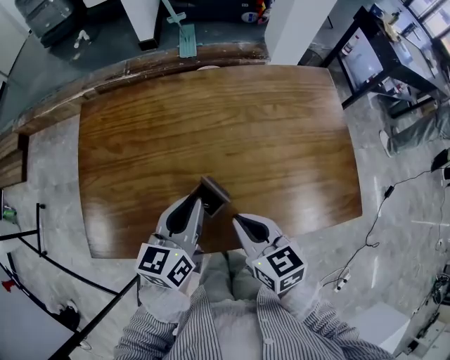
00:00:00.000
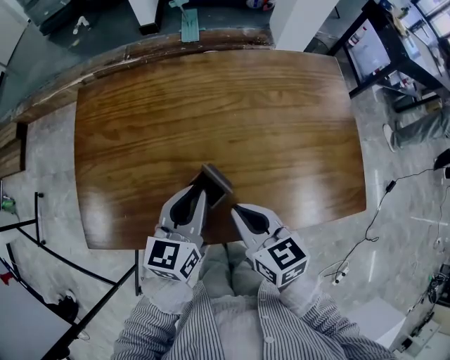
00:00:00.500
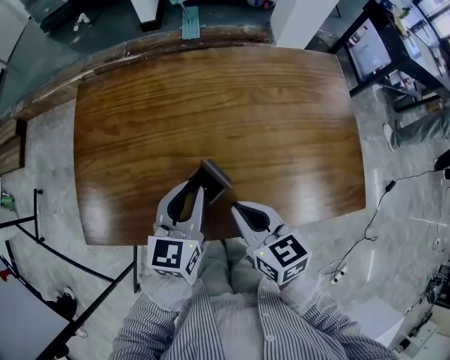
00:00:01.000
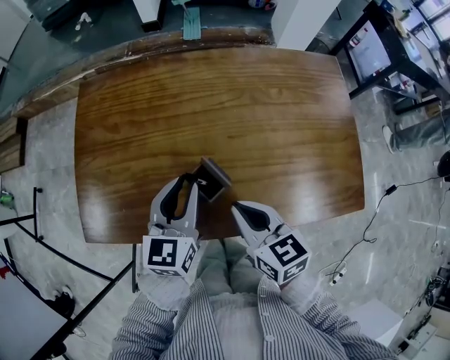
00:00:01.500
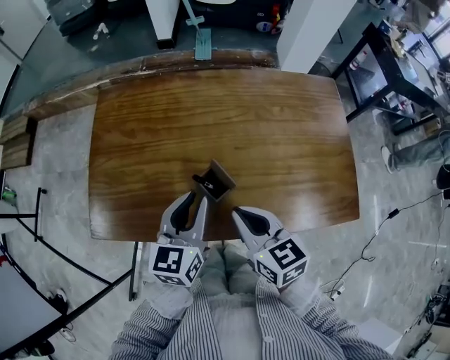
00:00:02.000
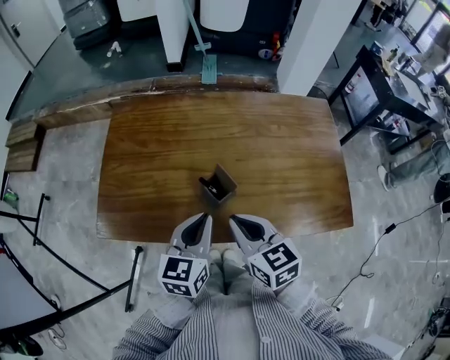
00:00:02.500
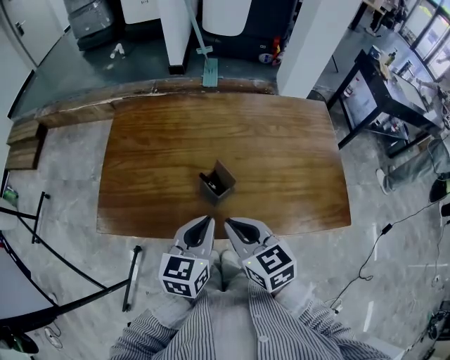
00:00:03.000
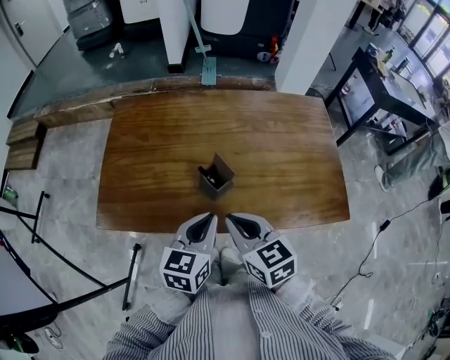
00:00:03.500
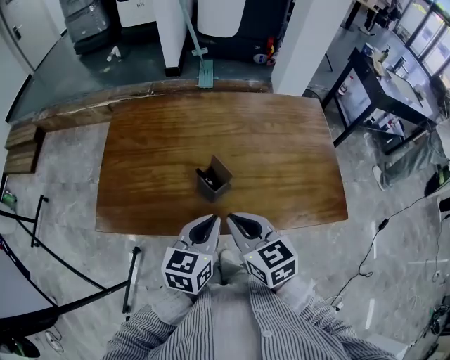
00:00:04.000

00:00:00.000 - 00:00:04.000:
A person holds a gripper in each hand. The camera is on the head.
00:00:00.000 - 00:00:02.000: The grippers stay close to where they were, moving slightly.
00:00:02.000 - 00:00:04.000: The left gripper goes roughly 10 cm backward; the right gripper heads backward, covering approximately 5 cm.

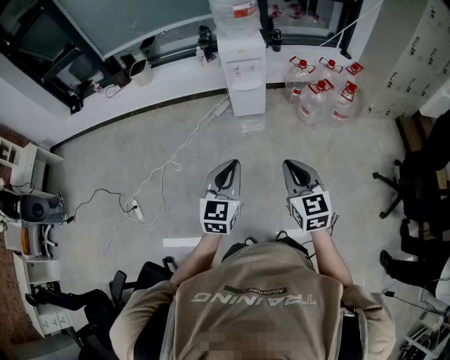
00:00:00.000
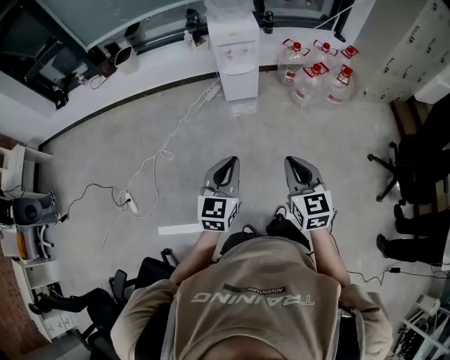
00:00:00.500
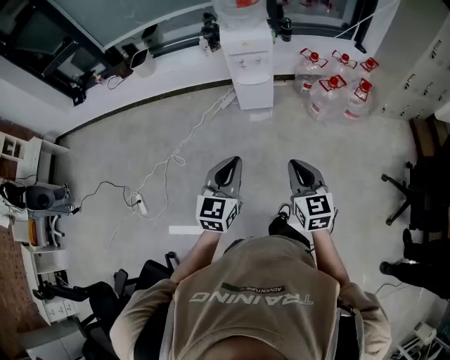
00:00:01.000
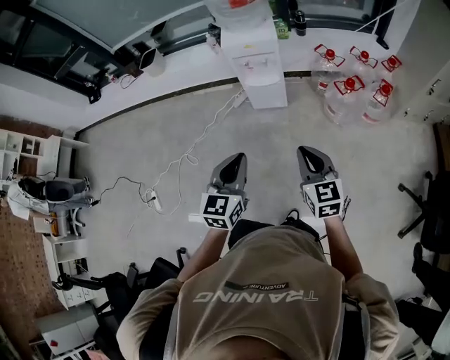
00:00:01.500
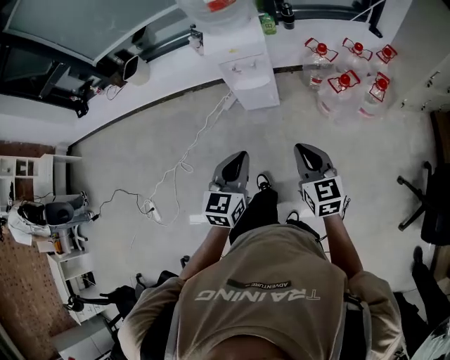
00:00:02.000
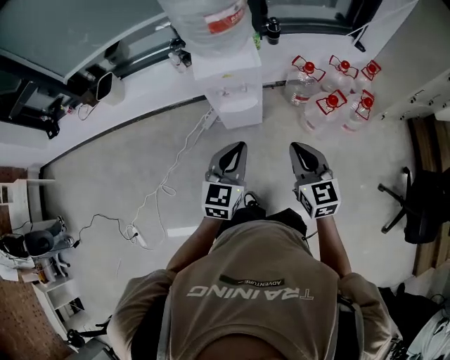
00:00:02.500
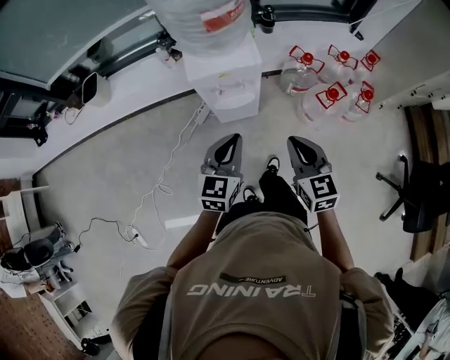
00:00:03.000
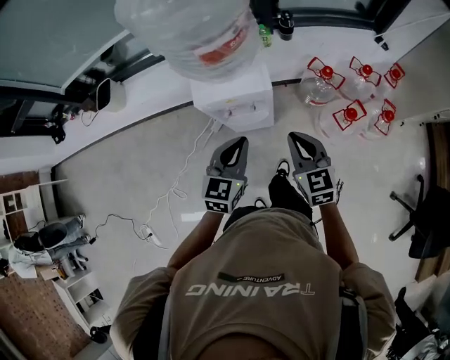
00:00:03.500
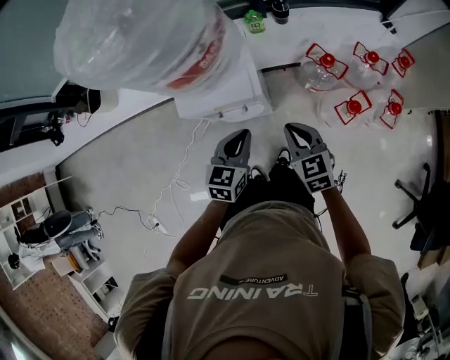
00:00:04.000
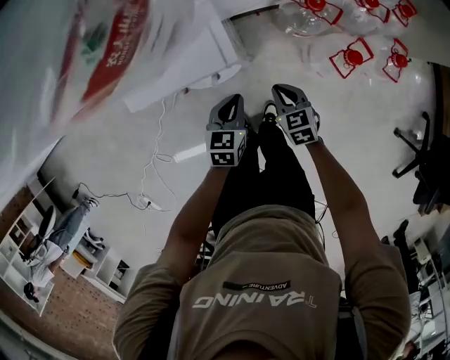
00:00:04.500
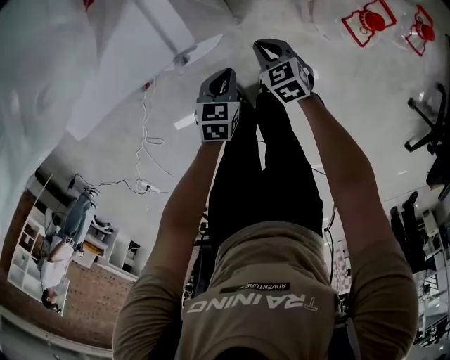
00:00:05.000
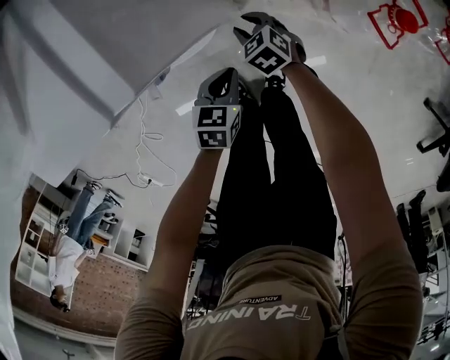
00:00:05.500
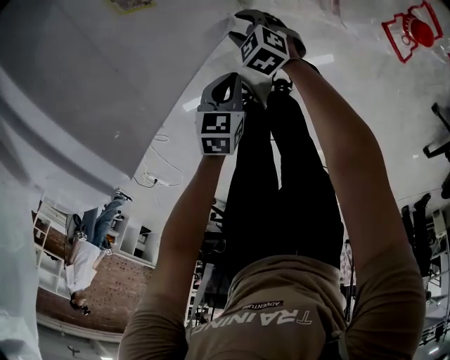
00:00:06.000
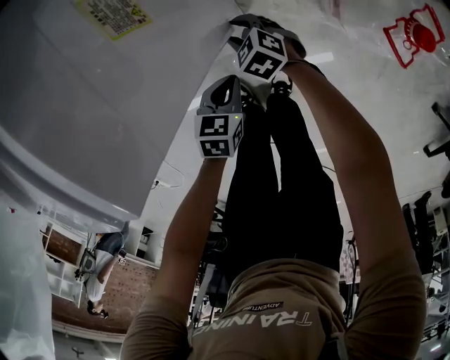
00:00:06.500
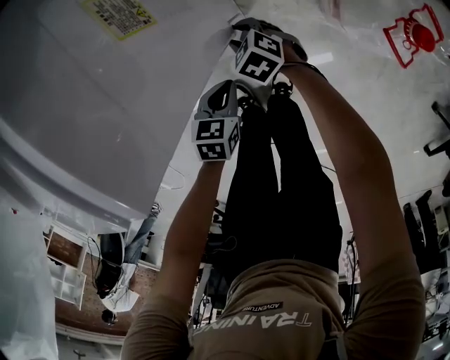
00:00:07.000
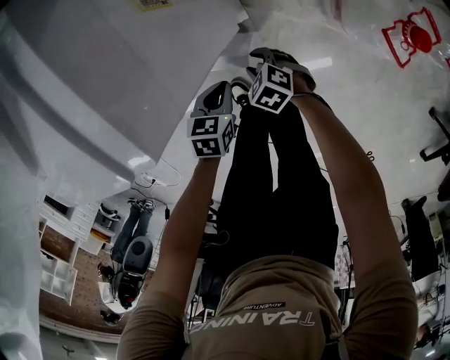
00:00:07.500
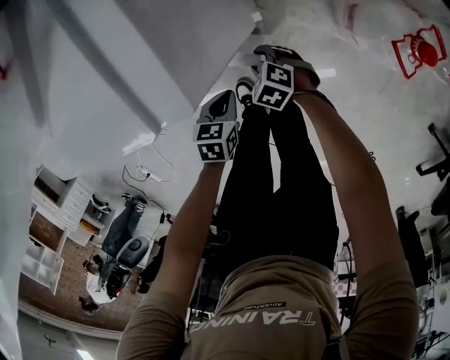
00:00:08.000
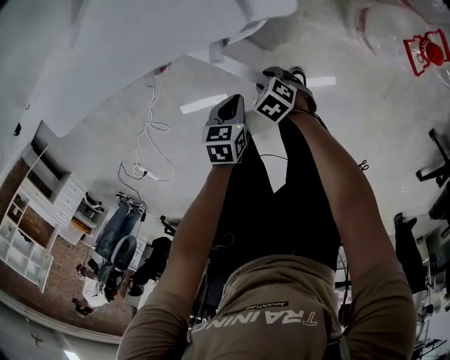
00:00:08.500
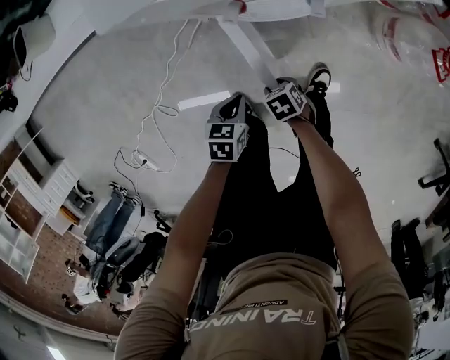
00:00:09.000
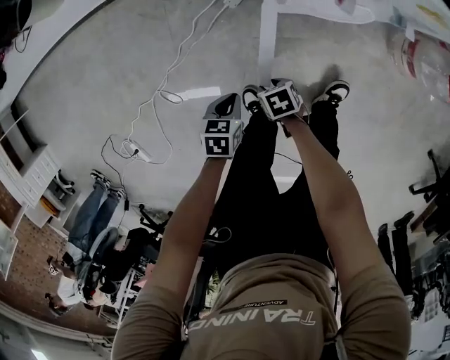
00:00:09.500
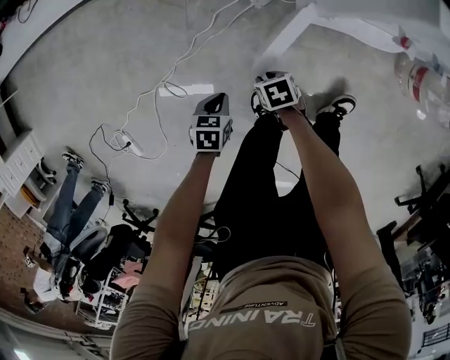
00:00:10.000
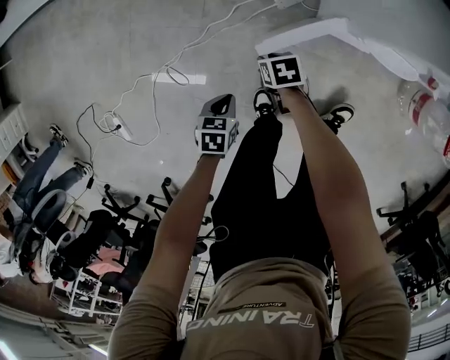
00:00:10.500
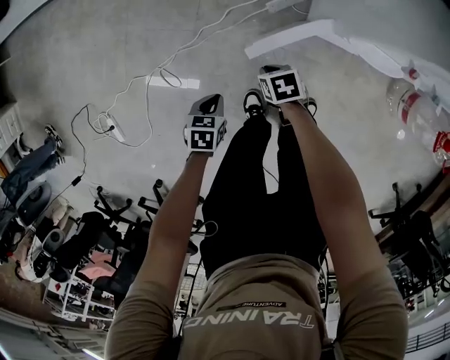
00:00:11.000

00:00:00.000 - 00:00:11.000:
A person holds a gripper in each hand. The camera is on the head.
00:00:00.000 - 00:00:02.000: The two grippers go approximately 30 cm forward.
00:00:02.000 - 00:00:03.500: Both grippers travel together forward, about 35 cm.
00:00:03.500 - 00:00:05.500: Both grippers move downward, some 50 cm. The left gripper angles its fingers downward, by roughly 30 degrees. The right gripper points its fingers about 30 degrees further downward, and opens its fingers.
00:00:05.500 - 00:00:07.500: The right gripper travels backward by roughly 10 cm. Meanwhile the left gripper goes roughly 5 cm to the left.
00:00:07.500 - 00:00:09.000: The left gripper ends up some 25 cm from where it was, while the right gripper ends up some 20 cm from where it was, and rotates about 30 degrees.
00:00:09.000 - 00:00:11.000: The right gripper shifts by some 25 cm, and closes up. Meanwhile the left gripper changes place by some 30 cm.

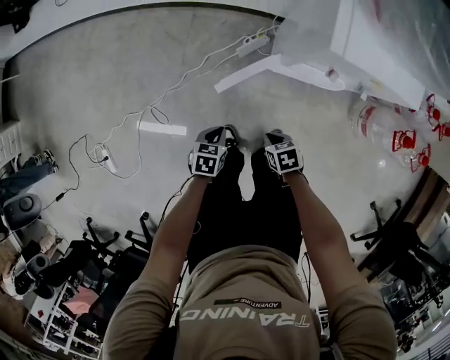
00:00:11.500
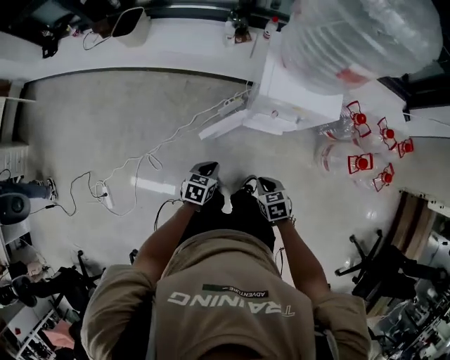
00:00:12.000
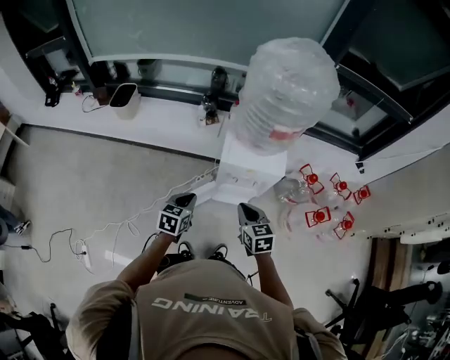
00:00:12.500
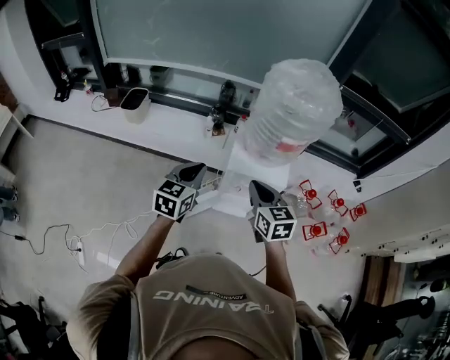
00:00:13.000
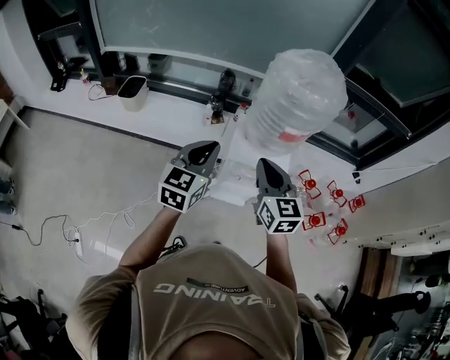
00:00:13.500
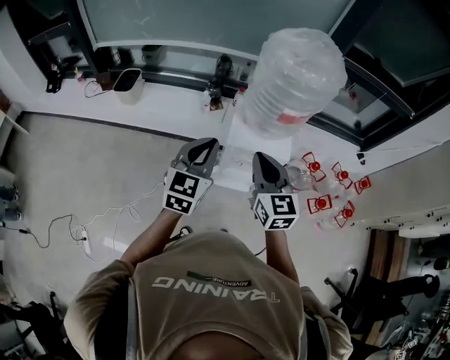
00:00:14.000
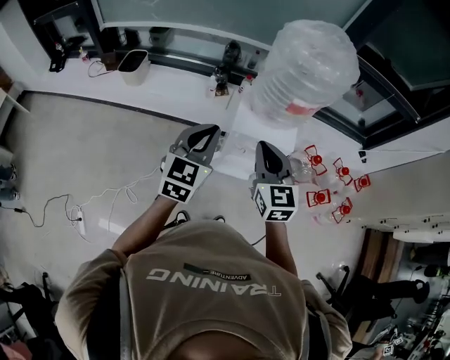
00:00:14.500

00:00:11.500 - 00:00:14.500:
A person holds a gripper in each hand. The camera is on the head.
00:00:11.500 - 00:00:13.000: The two grippers go approximately 60 cm upward. The left gripper tilts its fingers some 40 degrees upward; the right gripper tilts its fingers approximately 40 degrees upward.
00:00:13.000 - 00:00:14.500: The left gripper moves upward, approximately 5 cm, while the right gripper shifts by roughly 5 cm.

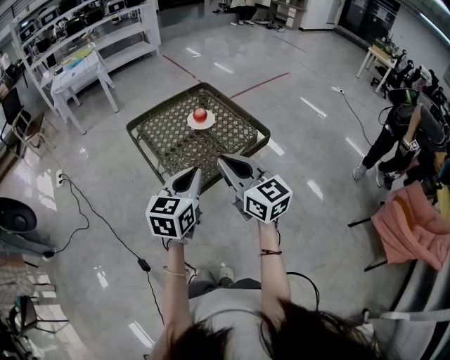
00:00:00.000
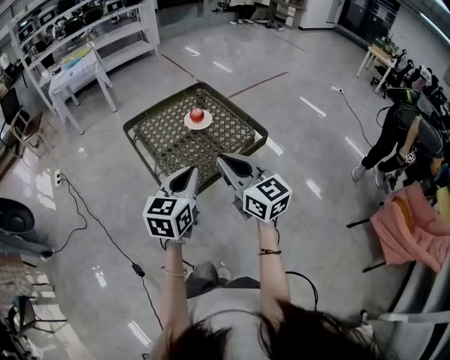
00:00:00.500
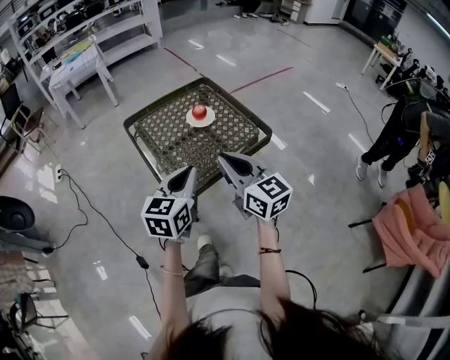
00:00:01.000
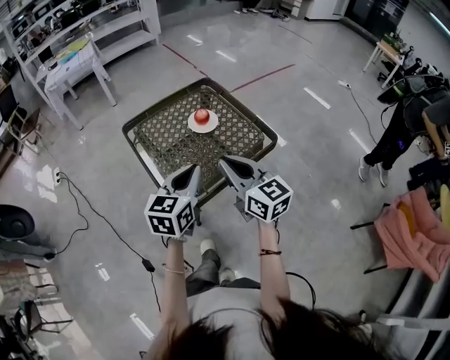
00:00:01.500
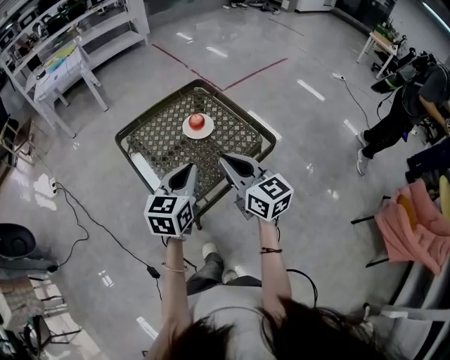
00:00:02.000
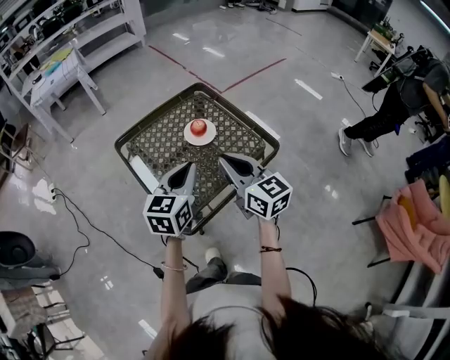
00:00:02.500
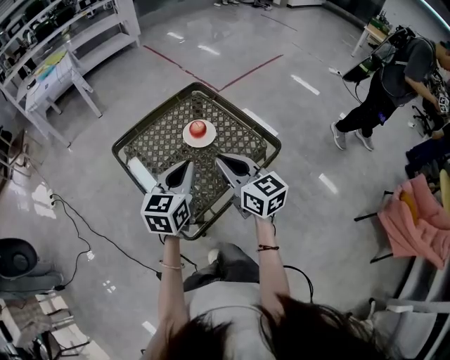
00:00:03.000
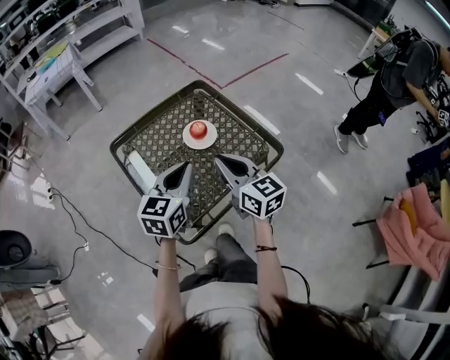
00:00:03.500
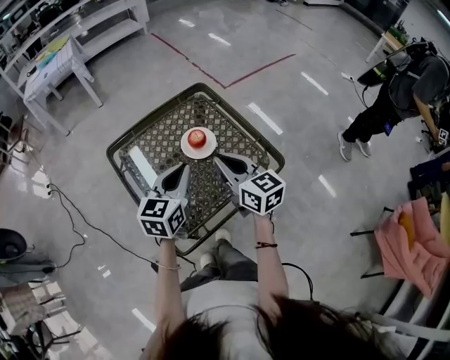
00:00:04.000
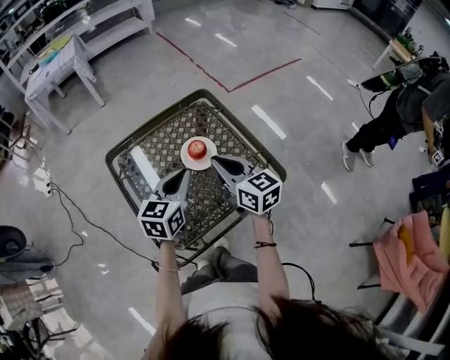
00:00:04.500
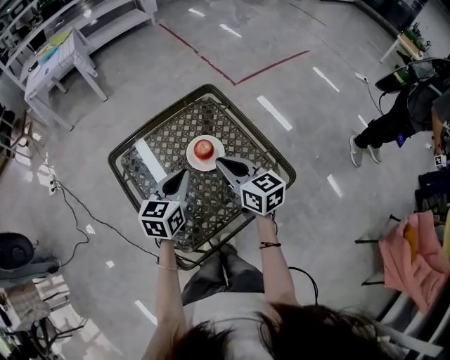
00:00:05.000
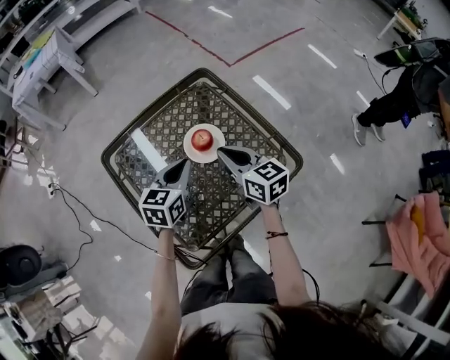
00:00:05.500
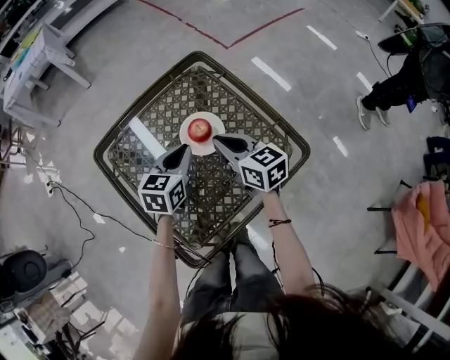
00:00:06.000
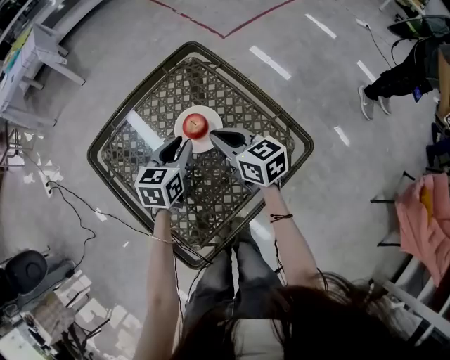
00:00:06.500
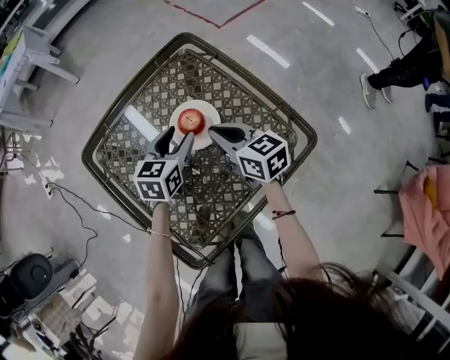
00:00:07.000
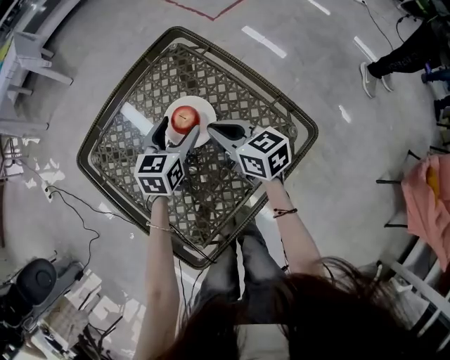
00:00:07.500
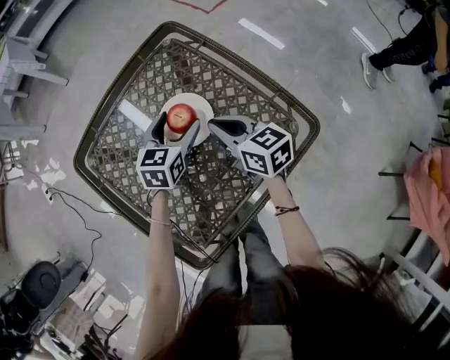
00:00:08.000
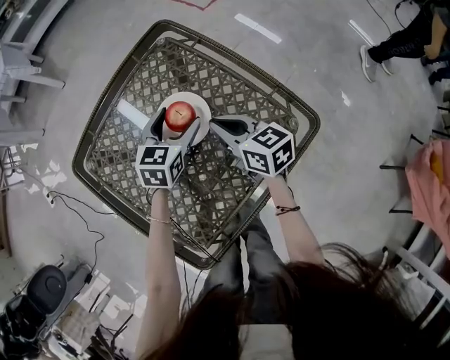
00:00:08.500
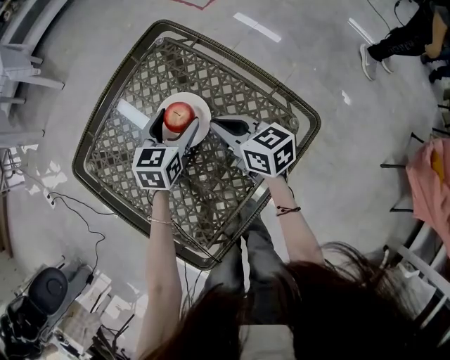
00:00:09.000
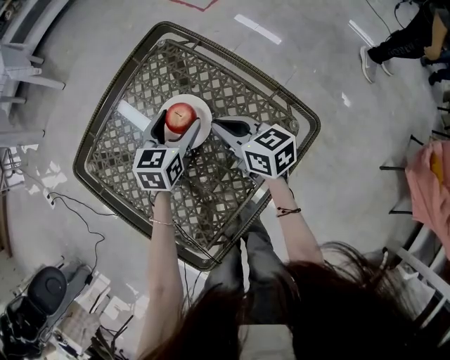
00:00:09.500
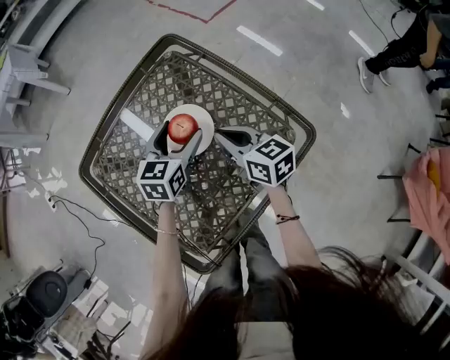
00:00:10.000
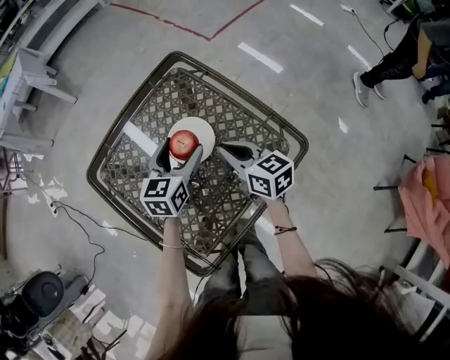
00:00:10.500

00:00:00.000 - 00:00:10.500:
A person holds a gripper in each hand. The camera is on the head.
00:00:00.000 - 00:00:02.000: The two grippers go approximately 15 cm forward.
00:00:02.000 - 00:00:04.000: The two grippers go approximately 15 cm forward.
00:00:04.000 - 00:00:06.500: The grippers both shift downward and forward by roughly 25 cm.
00:00:06.500 - 00:00:08.500: The right gripper shifts roughly 5 cm downward; the left gripper goes roughly 10 cm downward and forward, and opens its fingers.
00:00:08.500 - 00:00:10.500: Both grippers travel together upward, about 5 cm.
